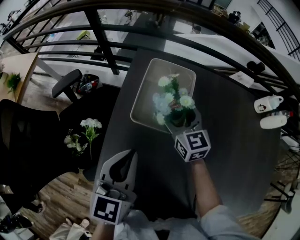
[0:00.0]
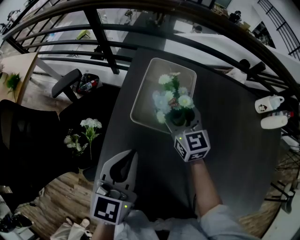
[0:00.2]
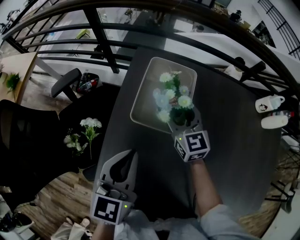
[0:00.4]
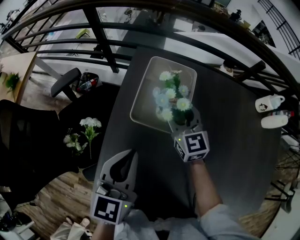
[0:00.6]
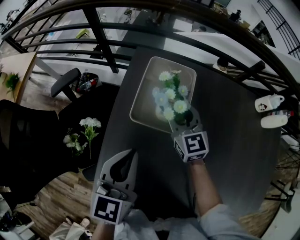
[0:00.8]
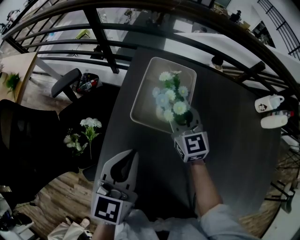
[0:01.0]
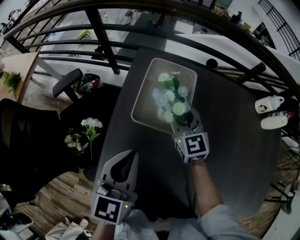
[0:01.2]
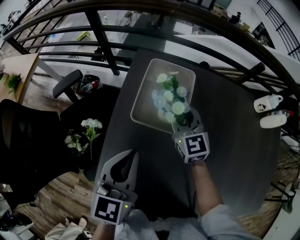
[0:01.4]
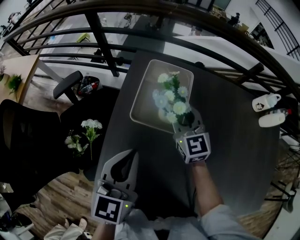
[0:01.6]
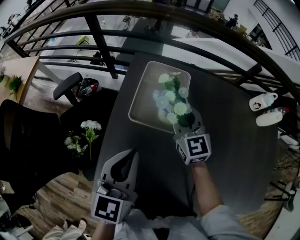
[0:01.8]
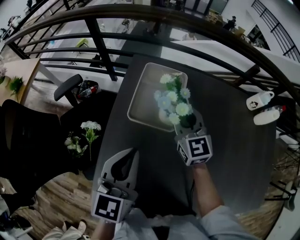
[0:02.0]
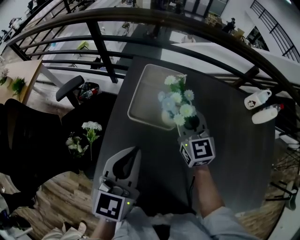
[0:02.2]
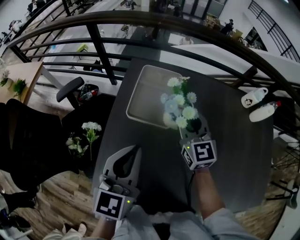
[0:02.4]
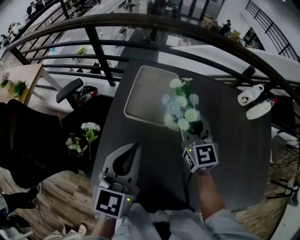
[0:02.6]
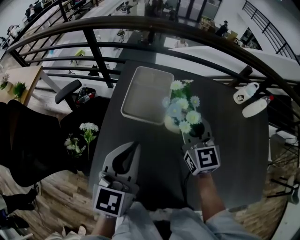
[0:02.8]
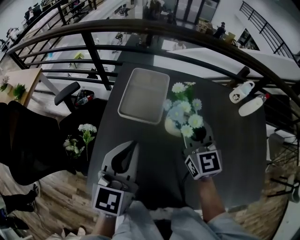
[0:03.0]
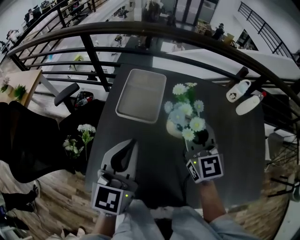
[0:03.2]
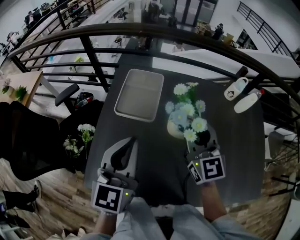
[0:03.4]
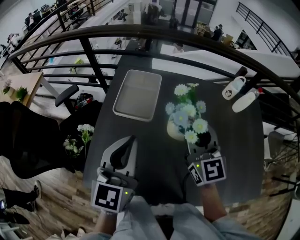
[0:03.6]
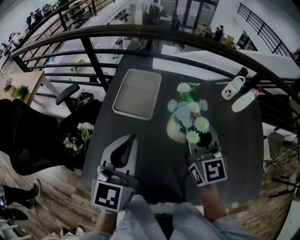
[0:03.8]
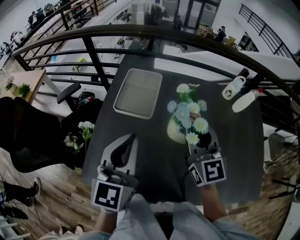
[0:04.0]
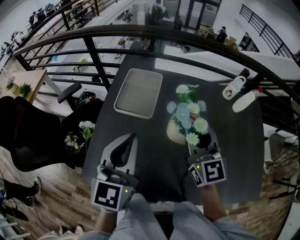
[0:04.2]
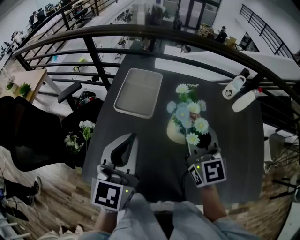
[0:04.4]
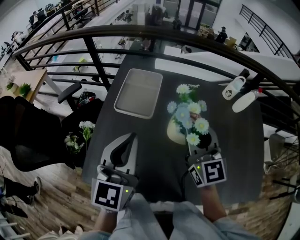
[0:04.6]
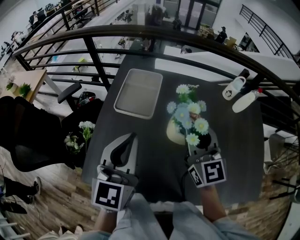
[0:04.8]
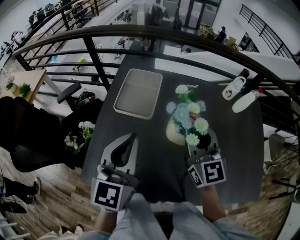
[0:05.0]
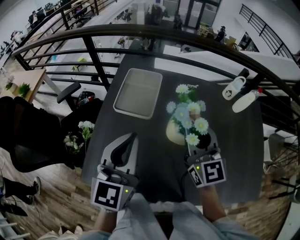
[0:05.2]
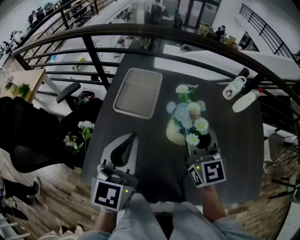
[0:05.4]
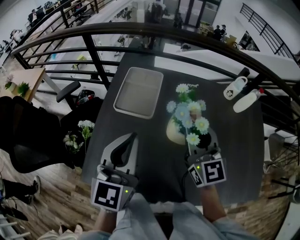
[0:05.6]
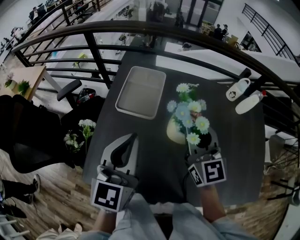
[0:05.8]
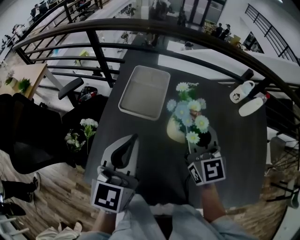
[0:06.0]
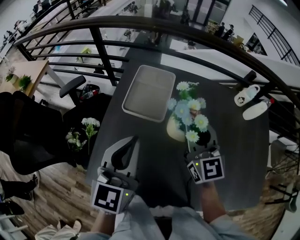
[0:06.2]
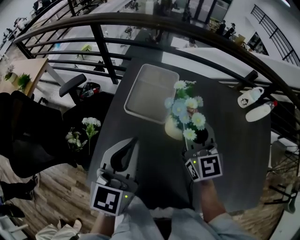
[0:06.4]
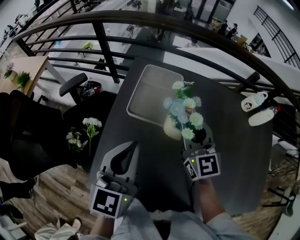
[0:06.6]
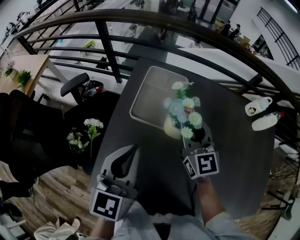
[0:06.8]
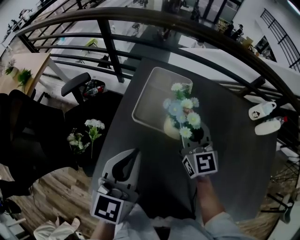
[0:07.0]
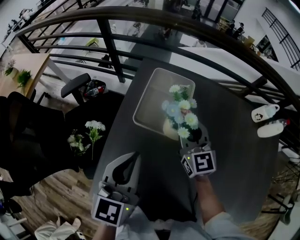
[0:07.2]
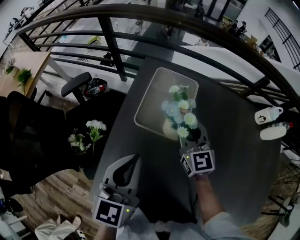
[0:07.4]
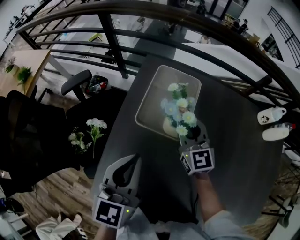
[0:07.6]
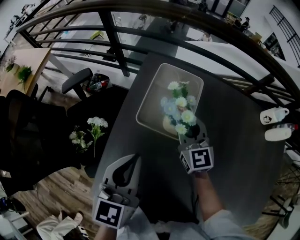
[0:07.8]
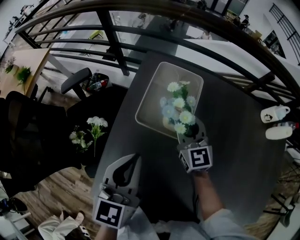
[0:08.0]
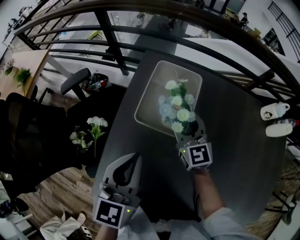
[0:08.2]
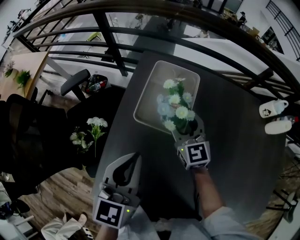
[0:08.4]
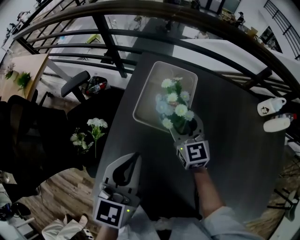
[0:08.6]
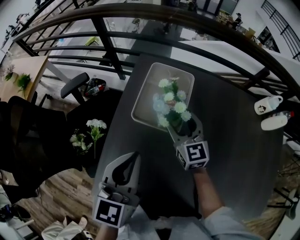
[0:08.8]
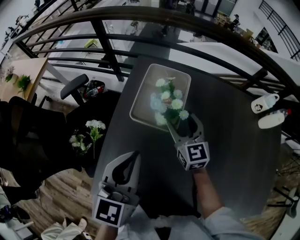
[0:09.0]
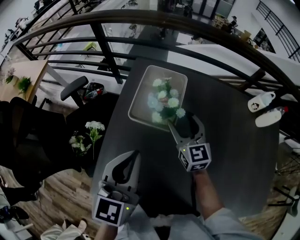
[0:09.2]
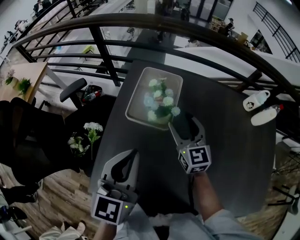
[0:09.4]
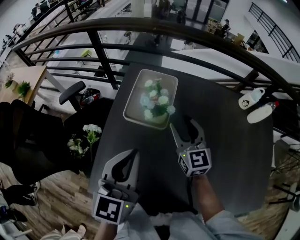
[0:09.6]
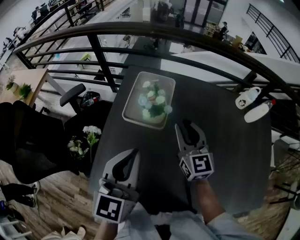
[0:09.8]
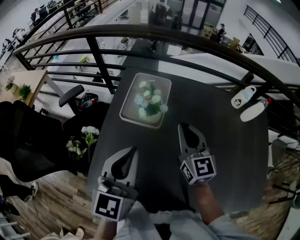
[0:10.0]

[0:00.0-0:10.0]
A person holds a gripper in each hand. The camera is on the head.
0:00.0 to 0:01.4: The right gripper closes up.
0:01.4 to 0:02.8: The left gripper travels upward, backward and to the right by approximately 10 cm; the right gripper shifts some 20 cm backward, upward and to the right.
0:02.8 to 0:04.2: The left gripper moves to the right, some 5 cm, while the right gripper travels backward, to the right and upward by some 15 cm.
0:04.2 to 0:05.8: There are only small adjustments of the grippers.
0:05.8 to 0:07.2: The right gripper moves forward, to the left and downward, about 25 cm; the left gripper is displaced to the left, forward and downward by some 15 cm.
0:07.2 to 0:08.6: The right gripper is displaced downward by approximately 5 cm, and opens its fingers.
0:08.6 to 0:10.0: The left gripper heads upward, backward and to the right, covering about 10 cm. Meanwhile the right gripper moves upward, backward and to the right, roughly 20 cm, and closes up.

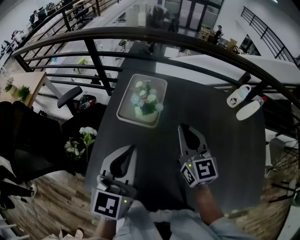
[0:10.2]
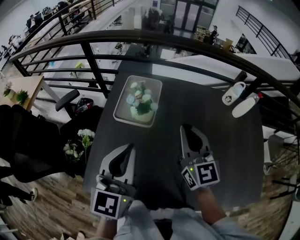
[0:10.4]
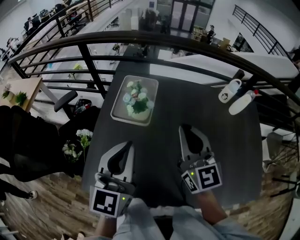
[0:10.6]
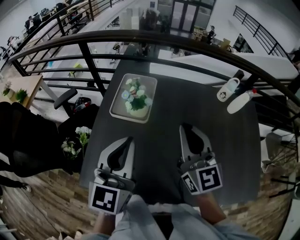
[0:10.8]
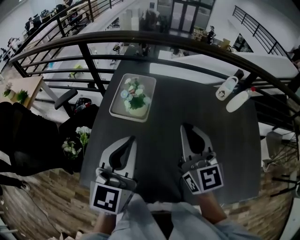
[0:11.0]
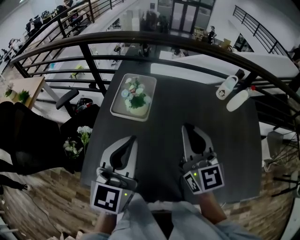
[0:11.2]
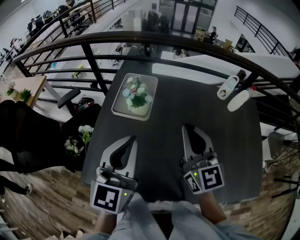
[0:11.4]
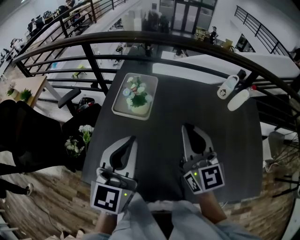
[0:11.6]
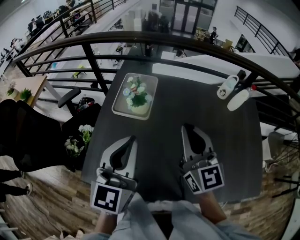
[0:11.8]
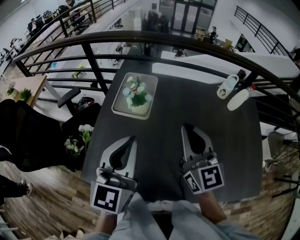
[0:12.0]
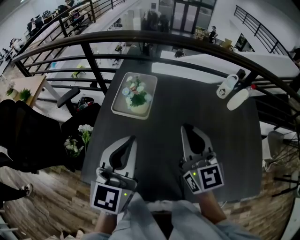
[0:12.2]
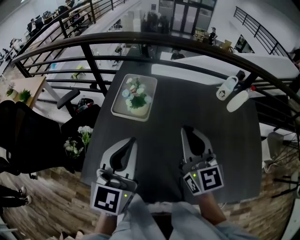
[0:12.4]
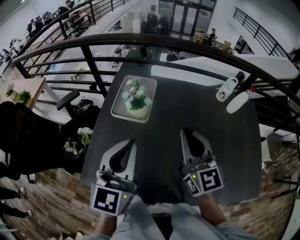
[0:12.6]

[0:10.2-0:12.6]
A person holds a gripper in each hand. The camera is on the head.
0:10.2 to 0:11.4: The right gripper moves backward and upward, approximately 10 cm; the left gripper shifts by approximately 5 cm.
0:11.4 to 0:12.6: Neither gripper changes place.

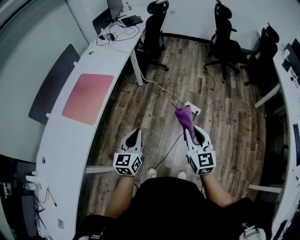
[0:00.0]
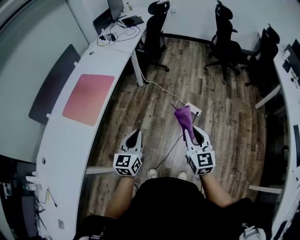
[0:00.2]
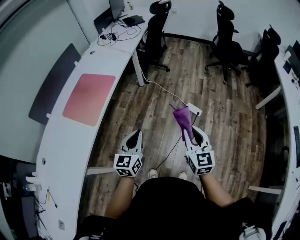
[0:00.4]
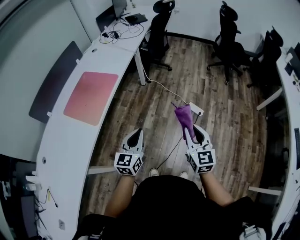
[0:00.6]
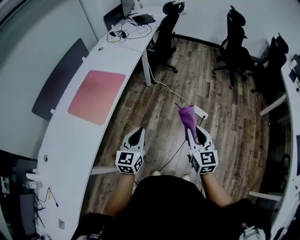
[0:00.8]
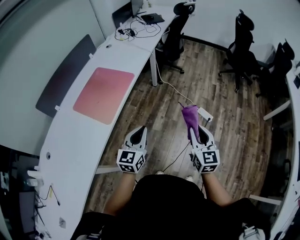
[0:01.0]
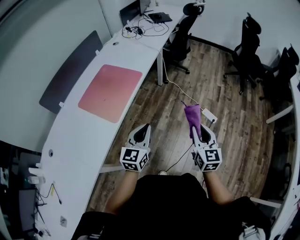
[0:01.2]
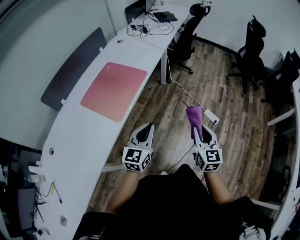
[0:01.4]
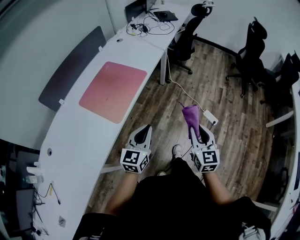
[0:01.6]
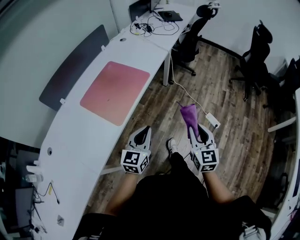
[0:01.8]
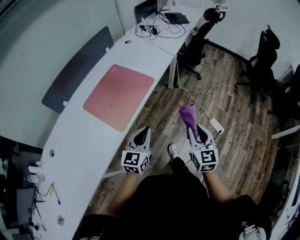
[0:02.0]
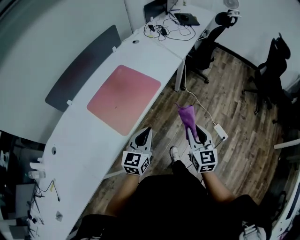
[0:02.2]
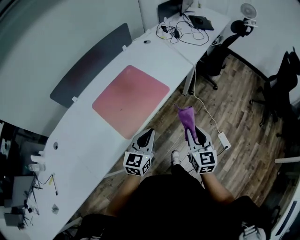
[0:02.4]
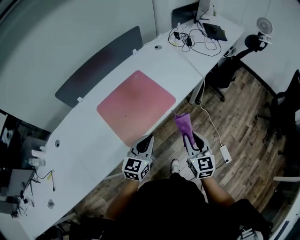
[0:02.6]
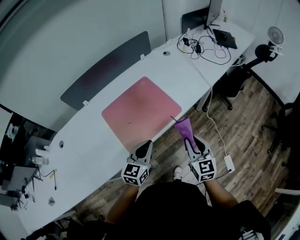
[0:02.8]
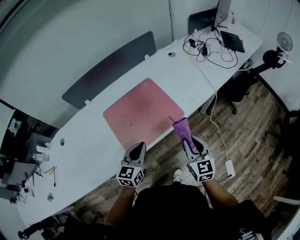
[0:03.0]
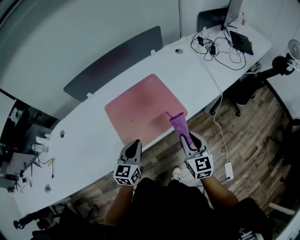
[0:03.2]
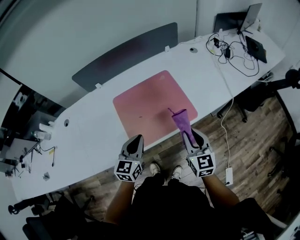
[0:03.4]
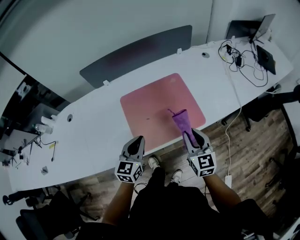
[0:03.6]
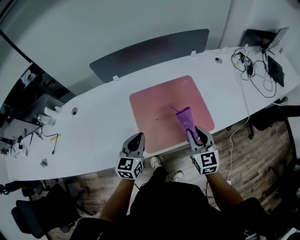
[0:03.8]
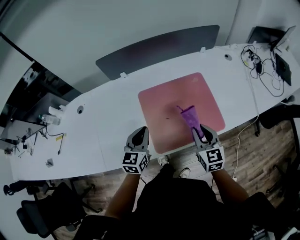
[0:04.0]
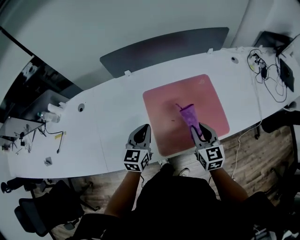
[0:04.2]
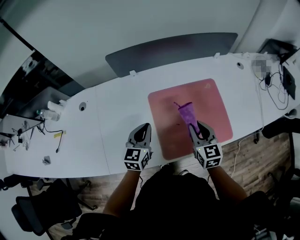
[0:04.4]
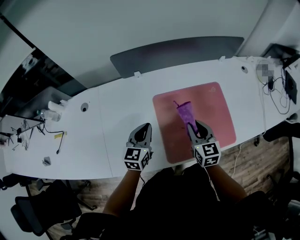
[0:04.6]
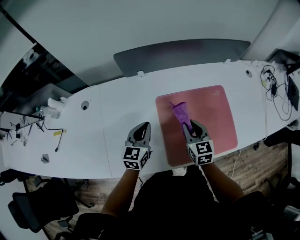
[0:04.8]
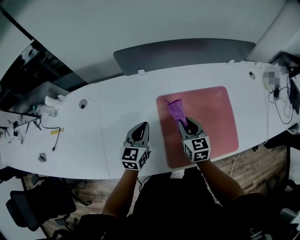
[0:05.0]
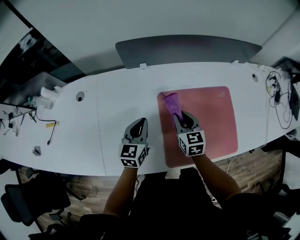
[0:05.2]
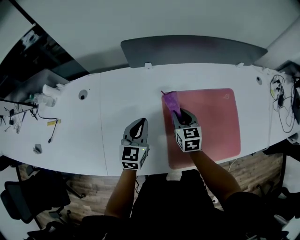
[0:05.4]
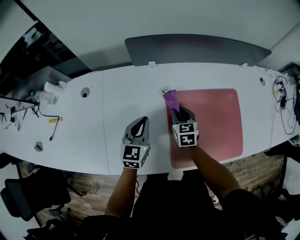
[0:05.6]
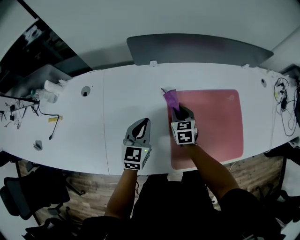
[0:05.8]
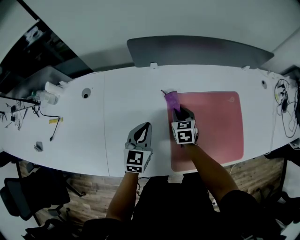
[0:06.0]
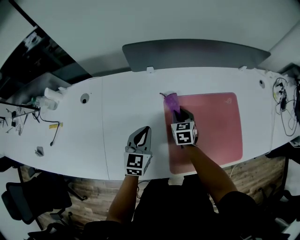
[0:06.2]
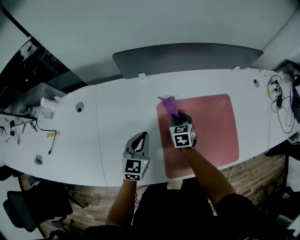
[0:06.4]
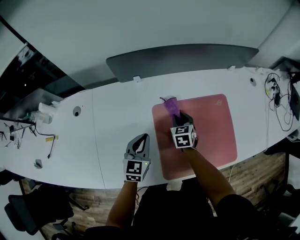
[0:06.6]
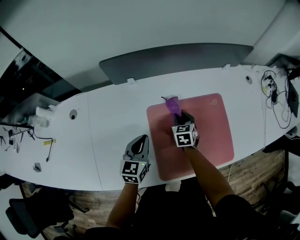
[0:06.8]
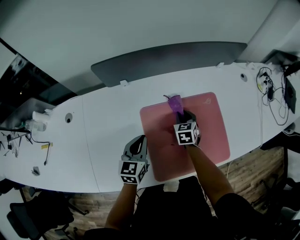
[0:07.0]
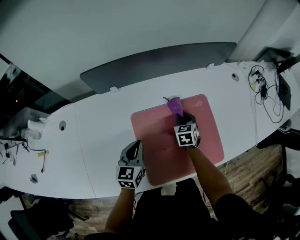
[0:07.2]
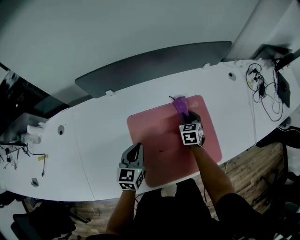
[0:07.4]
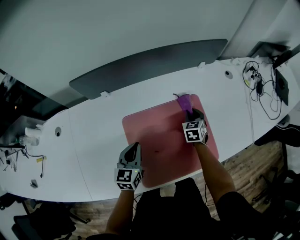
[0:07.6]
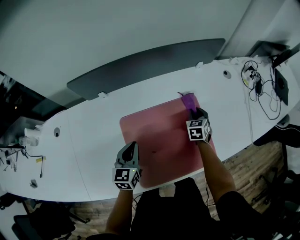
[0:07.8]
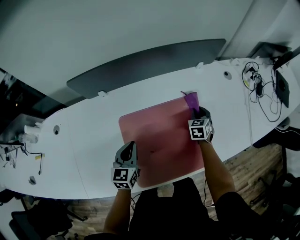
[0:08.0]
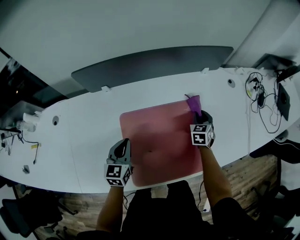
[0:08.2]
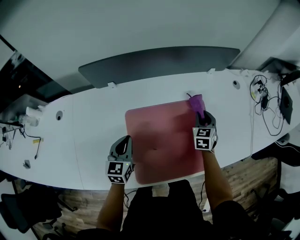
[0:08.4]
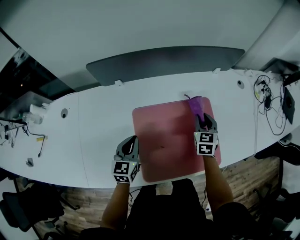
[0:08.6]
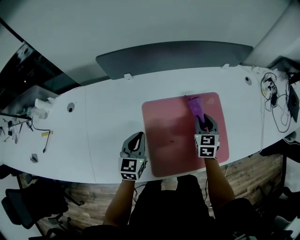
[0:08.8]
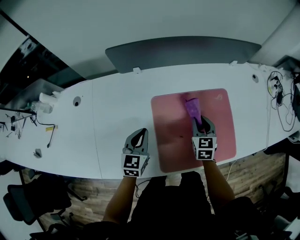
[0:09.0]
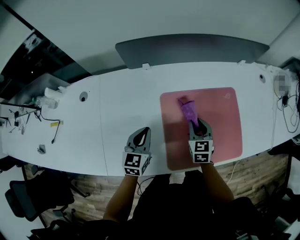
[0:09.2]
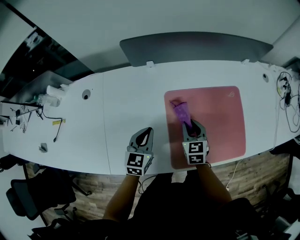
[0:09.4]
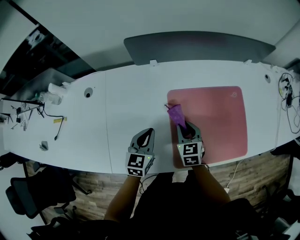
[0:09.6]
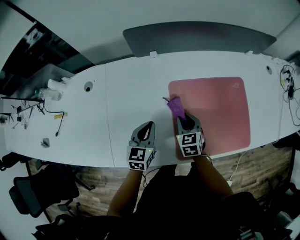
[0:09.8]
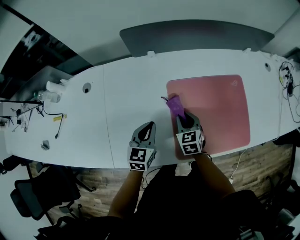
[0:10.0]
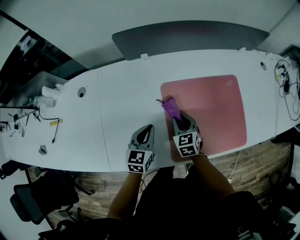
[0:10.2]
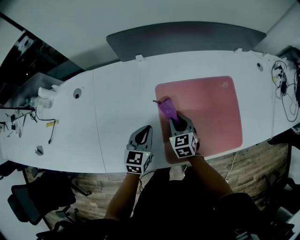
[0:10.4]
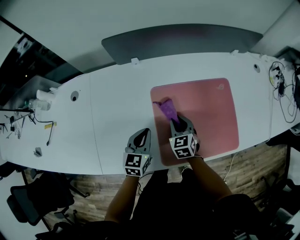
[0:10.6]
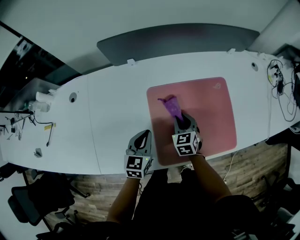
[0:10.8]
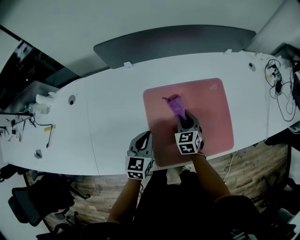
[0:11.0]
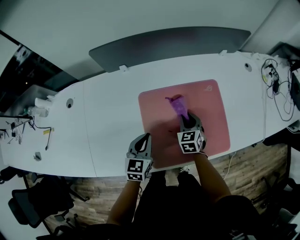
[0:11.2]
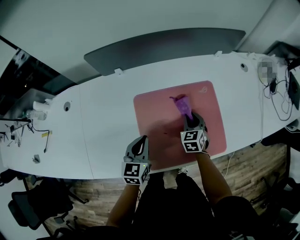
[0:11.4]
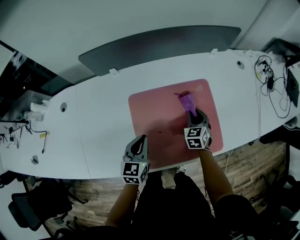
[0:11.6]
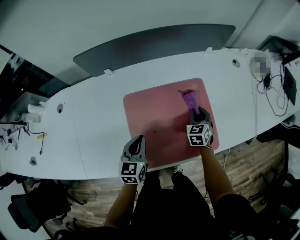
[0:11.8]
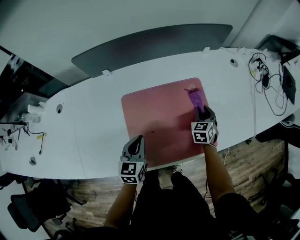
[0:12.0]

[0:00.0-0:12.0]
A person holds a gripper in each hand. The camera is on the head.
0:00.0 to 0:01.6: The left gripper is displaced to the left by about 15 cm, while the right gripper heads to the left and forward, covering some 20 cm.
0:01.6 to 0:03.0: The right gripper moves approximately 35 cm, and turns by some 40 degrees. Meanwhile the left gripper shifts by roughly 25 cm, and swivels approximately 30 degrees.
0:03.0 to 0:04.4: The grippers both shift to the left and forward by approximately 30 cm. The right gripper turns by roughly 20 degrees; the left gripper changes its angle by some 20 degrees.
0:04.4 to 0:06.0: The right gripper goes some 25 cm forward, to the left and downward. Meanwhile the left gripper moves to the left, roughly 10 cm.
0:06.0 to 0:07.6: The right gripper moves to the right, about 30 cm, and rotates about 20 degrees. The left gripper goes about 15 cm to the right.
0:07.6 to 0:09.0: The left gripper moves to the left, roughly 10 cm. Meanwhile the right gripper shifts approximately 15 cm backward, to the left and upward.
0:09.0 to 0:10.4: The right gripper goes some 15 cm to the left.
0:10.4 to 0:12.0: The left gripper shifts roughly 15 cm to the right. The right gripper shifts roughly 30 cm to the right, and swivels approximately 30 degrees.
